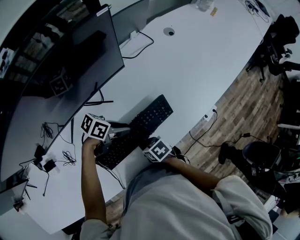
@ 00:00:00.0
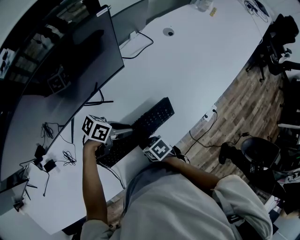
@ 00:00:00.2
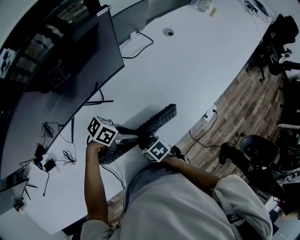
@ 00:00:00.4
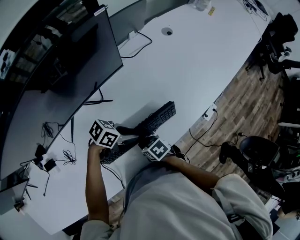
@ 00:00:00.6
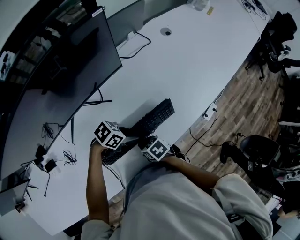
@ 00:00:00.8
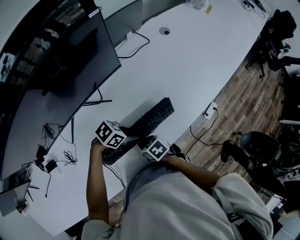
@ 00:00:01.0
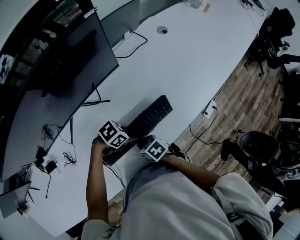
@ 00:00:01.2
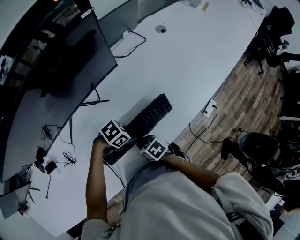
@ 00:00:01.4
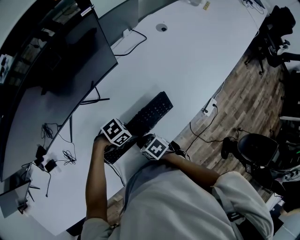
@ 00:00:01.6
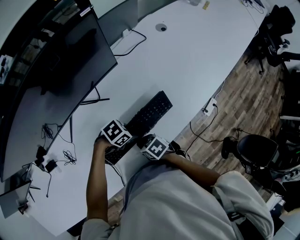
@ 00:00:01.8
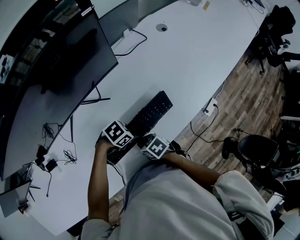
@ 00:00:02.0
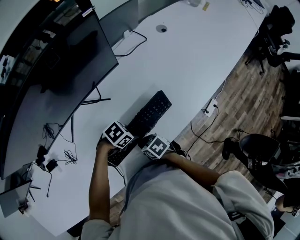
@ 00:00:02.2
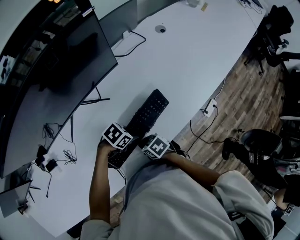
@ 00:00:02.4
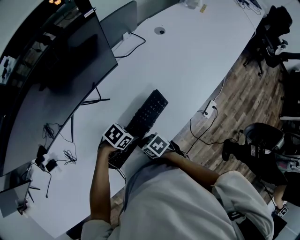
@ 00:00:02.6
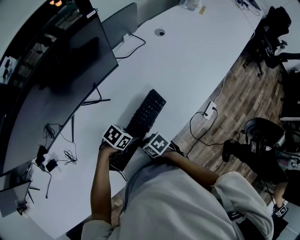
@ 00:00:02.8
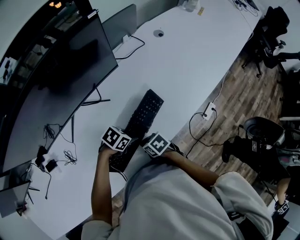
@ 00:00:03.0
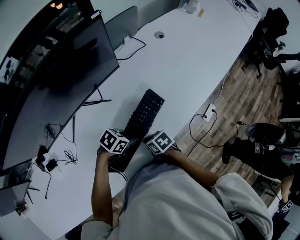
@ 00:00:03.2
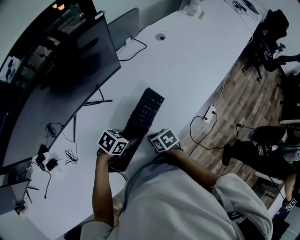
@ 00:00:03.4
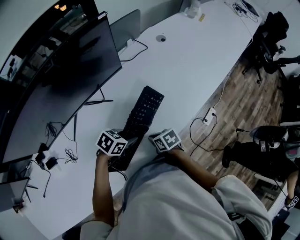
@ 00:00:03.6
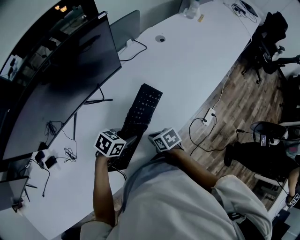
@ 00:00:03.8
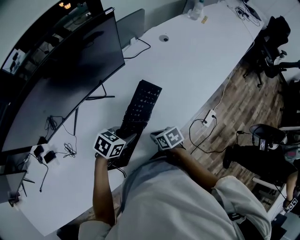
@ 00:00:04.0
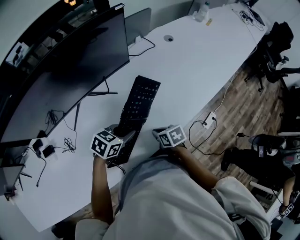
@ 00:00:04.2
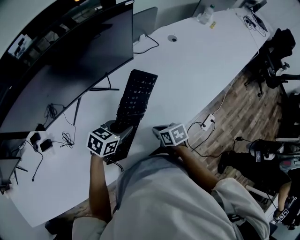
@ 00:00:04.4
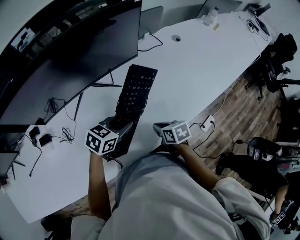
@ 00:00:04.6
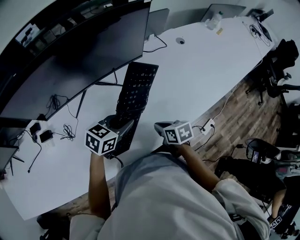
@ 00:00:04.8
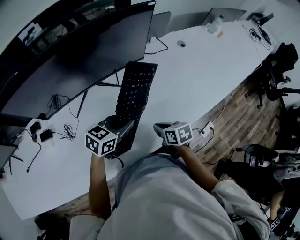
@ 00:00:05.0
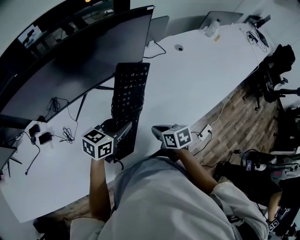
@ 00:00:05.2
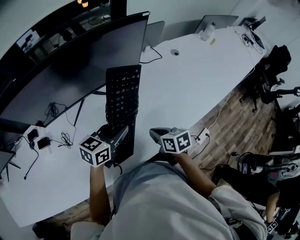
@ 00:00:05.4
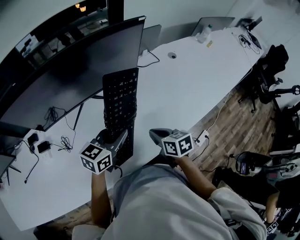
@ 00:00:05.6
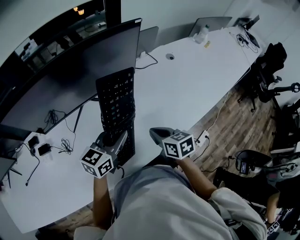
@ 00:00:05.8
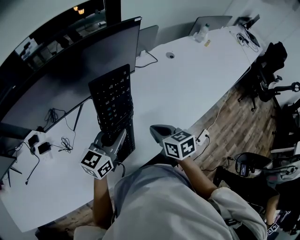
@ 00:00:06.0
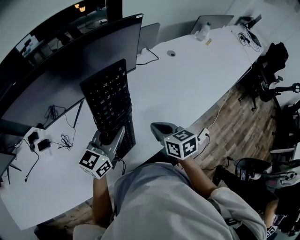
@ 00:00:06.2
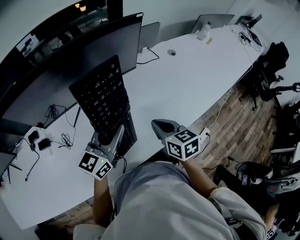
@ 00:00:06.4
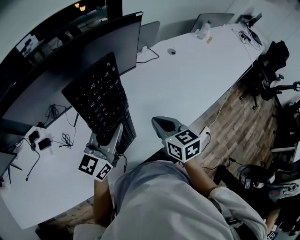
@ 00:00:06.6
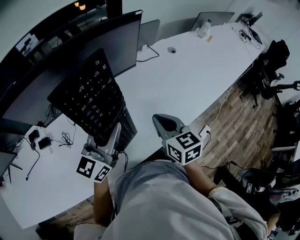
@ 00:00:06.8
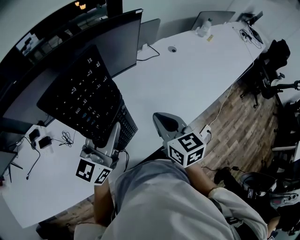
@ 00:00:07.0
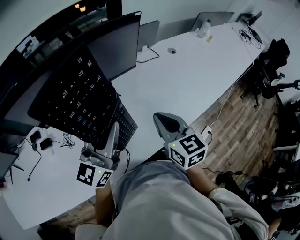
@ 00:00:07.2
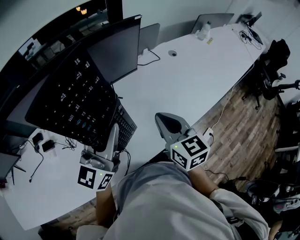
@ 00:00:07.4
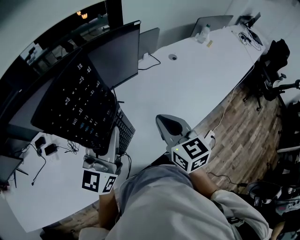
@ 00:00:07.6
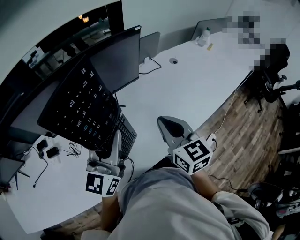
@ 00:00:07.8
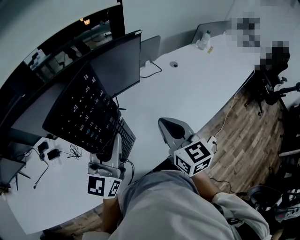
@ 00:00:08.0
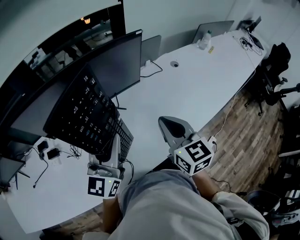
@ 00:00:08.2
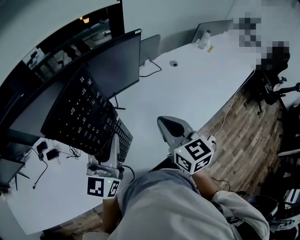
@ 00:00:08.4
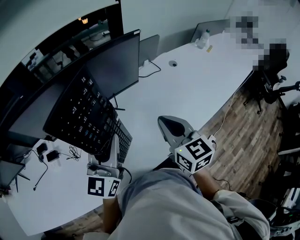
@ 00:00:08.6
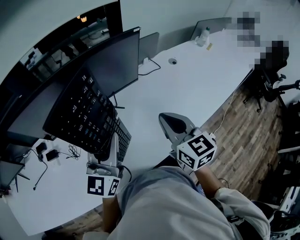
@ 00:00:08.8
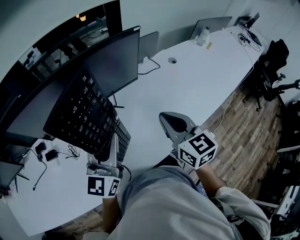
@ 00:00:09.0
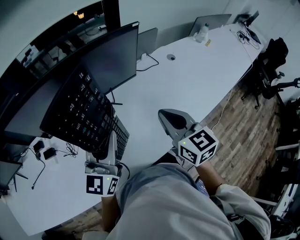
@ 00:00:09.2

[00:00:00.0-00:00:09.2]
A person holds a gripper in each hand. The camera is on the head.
00:00:00.0 to 00:00:01.6: The left gripper ends up roughly 10 cm from where it was, and changes its angle by roughly 30 degrees.
00:00:01.6 to 00:00:03.0: There are only small adjustments of the grippers.
00:00:03.0 to 00:00:04.6: The right gripper goes about 5 cm upward. The left gripper shifts some 10 cm upward, and swivels approximately 40 degrees.
00:00:04.6 to 00:00:06.2: Both grippers move upward, roughly 15 cm. The right gripper turns by some 20 degrees. Meanwhile the left gripper points its fingers some 30 degrees further upward.
00:00:06.2 to 00:00:07.6: Both grippers travel together upward, roughly 10 cm. The right gripper swivels roughly 20 degrees. The left gripper changes its angle by about 20 degrees.
00:00:07.6 to 00:00:09.2: The grippers make only small movements.

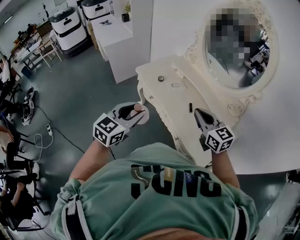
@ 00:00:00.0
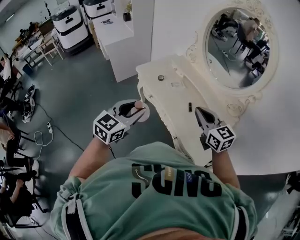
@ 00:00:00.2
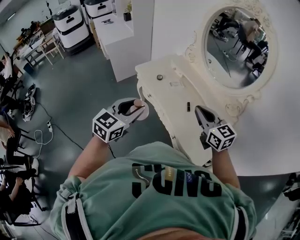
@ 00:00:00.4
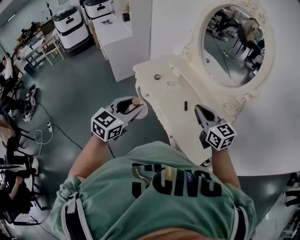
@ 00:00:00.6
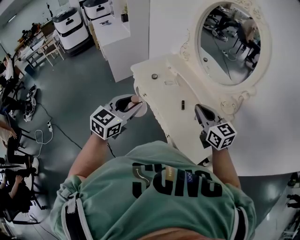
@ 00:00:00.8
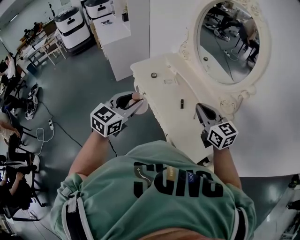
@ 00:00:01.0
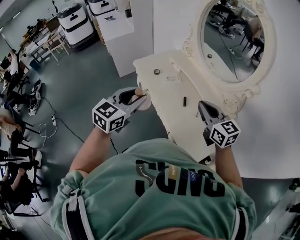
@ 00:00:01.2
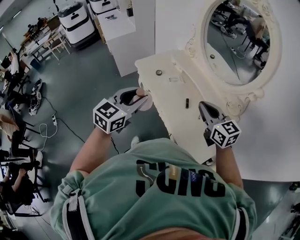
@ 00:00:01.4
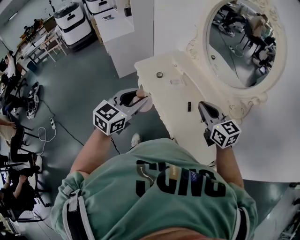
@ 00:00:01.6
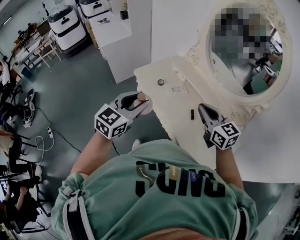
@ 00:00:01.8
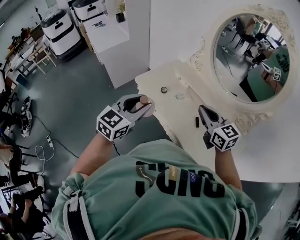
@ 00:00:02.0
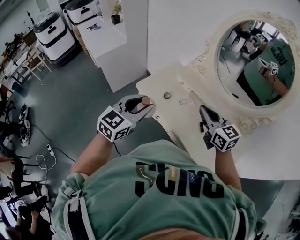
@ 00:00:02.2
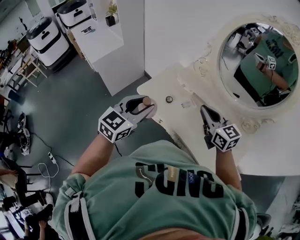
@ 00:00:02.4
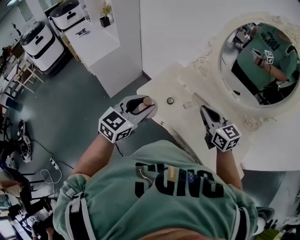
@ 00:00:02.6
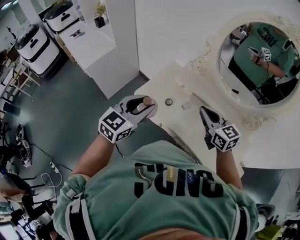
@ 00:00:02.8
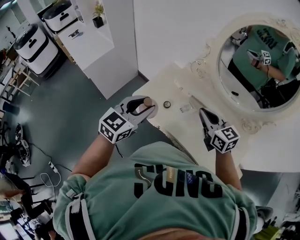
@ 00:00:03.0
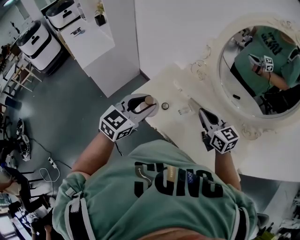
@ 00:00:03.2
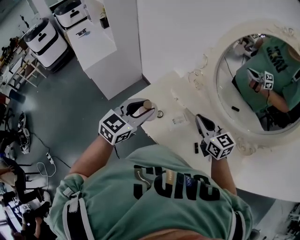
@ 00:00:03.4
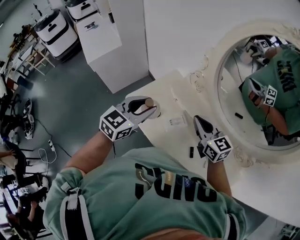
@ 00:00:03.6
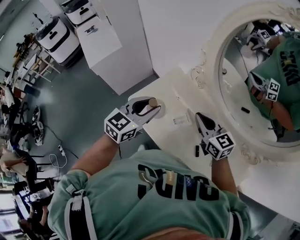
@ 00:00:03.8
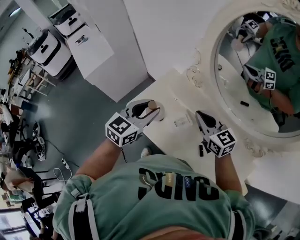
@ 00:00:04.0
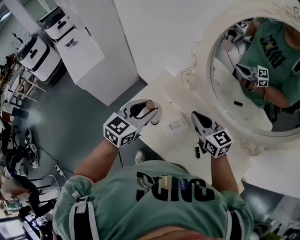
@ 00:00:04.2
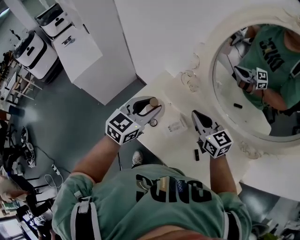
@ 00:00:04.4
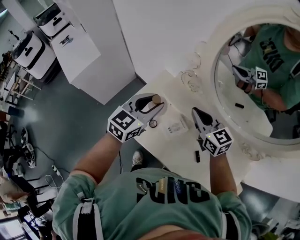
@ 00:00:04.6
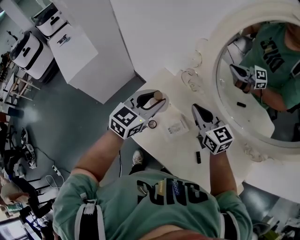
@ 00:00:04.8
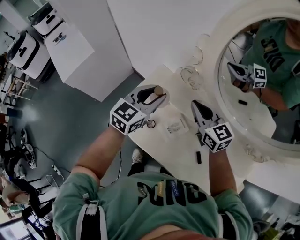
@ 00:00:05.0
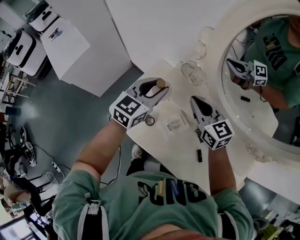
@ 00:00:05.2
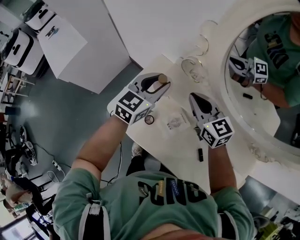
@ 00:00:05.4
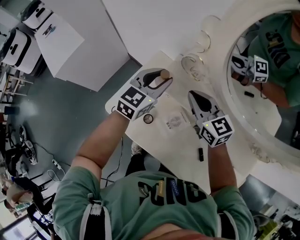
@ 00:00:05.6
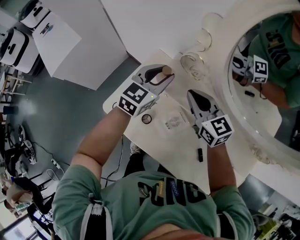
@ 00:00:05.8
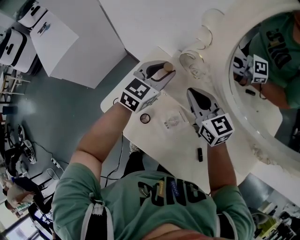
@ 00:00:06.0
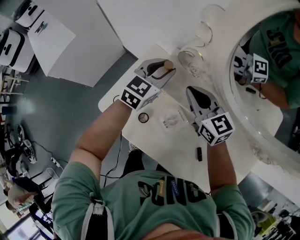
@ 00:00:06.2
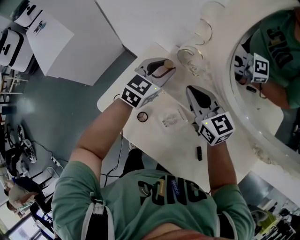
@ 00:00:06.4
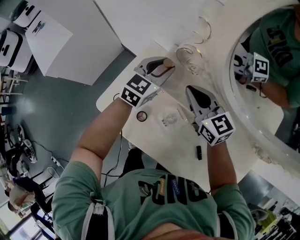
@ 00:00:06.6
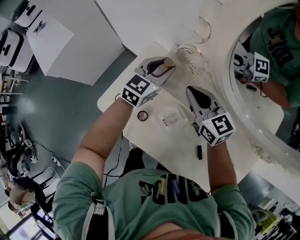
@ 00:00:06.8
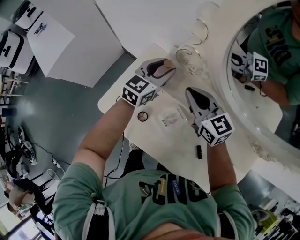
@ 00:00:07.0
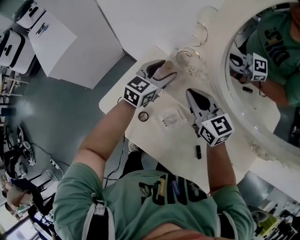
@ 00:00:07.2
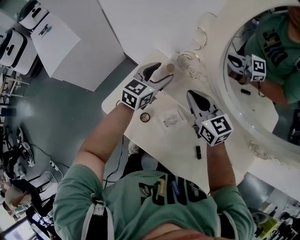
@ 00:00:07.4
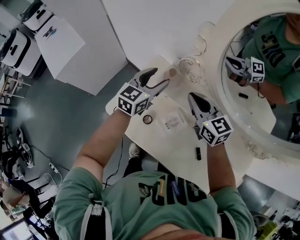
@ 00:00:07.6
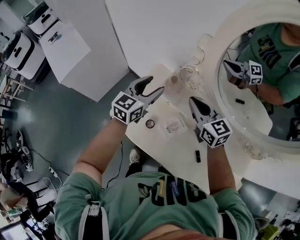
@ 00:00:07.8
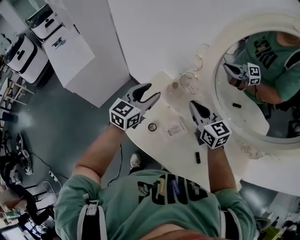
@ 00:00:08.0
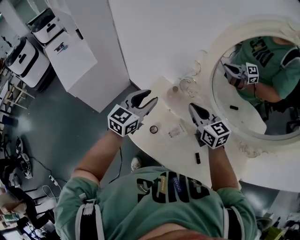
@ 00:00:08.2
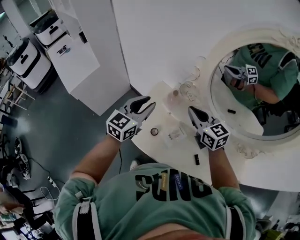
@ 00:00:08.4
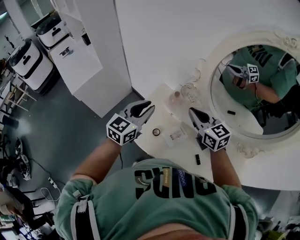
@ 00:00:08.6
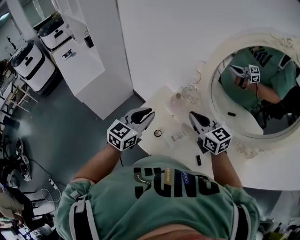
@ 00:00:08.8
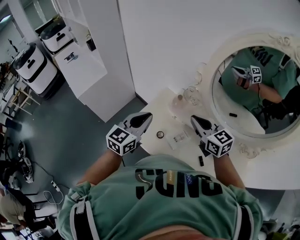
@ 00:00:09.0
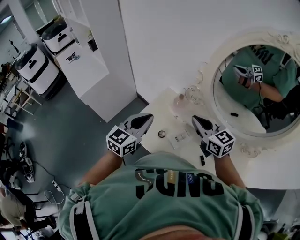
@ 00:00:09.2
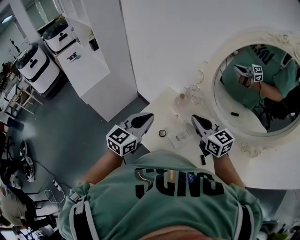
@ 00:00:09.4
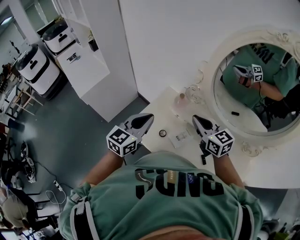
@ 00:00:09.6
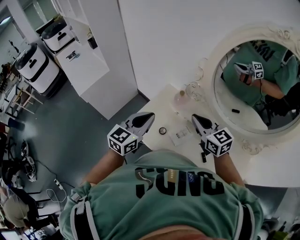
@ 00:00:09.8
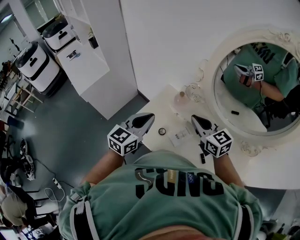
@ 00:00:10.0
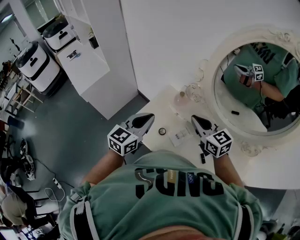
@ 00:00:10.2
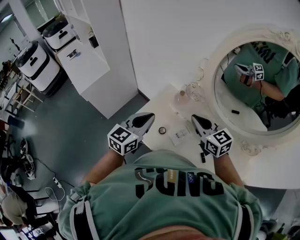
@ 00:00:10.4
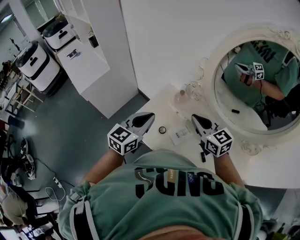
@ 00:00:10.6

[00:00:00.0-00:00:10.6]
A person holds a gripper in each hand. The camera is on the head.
00:00:00.0 to 00:00:01.6: The right gripper heads to the right and forward, covering some 10 cm. The left gripper shifts roughly 10 cm forward and to the right.
00:00:01.6 to 00:00:03.0: Both grippers travel together forward and to the left, about 30 cm. The left gripper rotates roughly 20 degrees.
00:00:03.0 to 00:00:04.6: The right gripper is displaced forward by roughly 20 cm. Meanwhile the left gripper heads forward and to the right, covering about 25 cm.
00:00:04.6 to 00:00:06.0: The right gripper travels downward and forward by approximately 15 cm. Meanwhile the left gripper travels forward and downward by approximately 20 cm.
00:00:06.0 to 00:00:07.6: The left gripper opens up.
00:00:07.6 to 00:00:09.0: The left gripper shifts some 25 cm backward, upward and to the left, and closes. The right gripper travels upward and backward by about 15 cm.
00:00:09.0 to 00:00:10.6: The grippers move only a little.

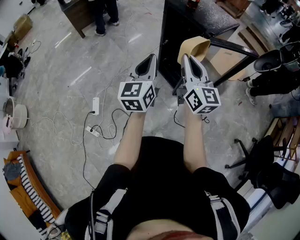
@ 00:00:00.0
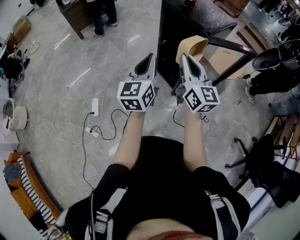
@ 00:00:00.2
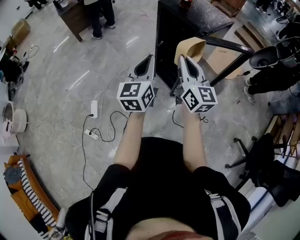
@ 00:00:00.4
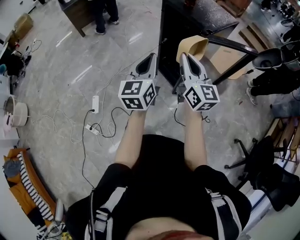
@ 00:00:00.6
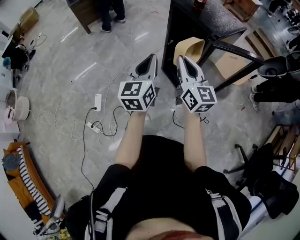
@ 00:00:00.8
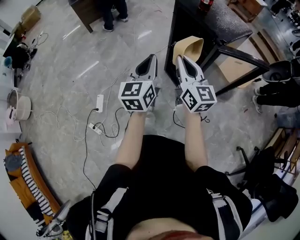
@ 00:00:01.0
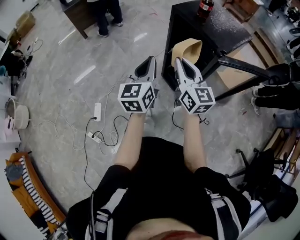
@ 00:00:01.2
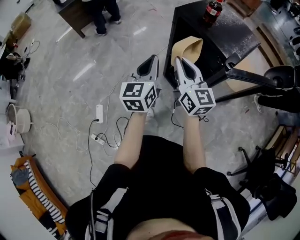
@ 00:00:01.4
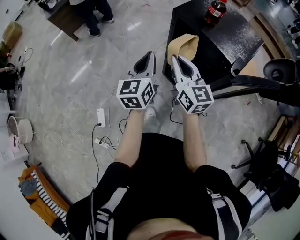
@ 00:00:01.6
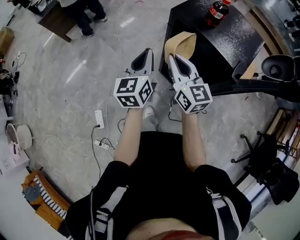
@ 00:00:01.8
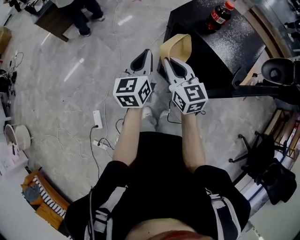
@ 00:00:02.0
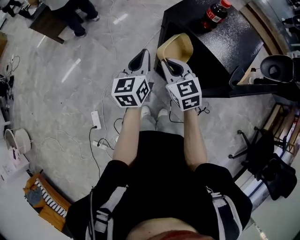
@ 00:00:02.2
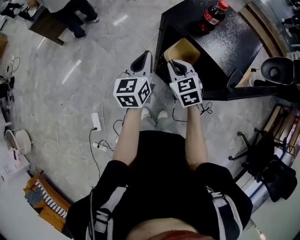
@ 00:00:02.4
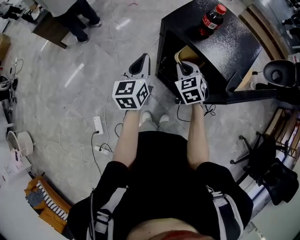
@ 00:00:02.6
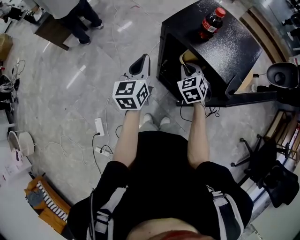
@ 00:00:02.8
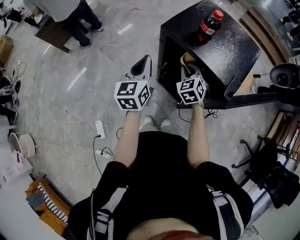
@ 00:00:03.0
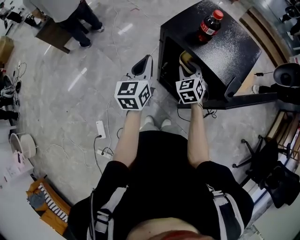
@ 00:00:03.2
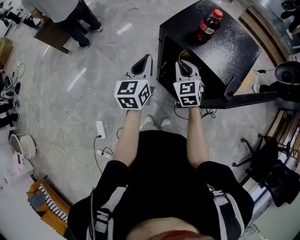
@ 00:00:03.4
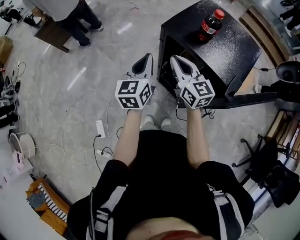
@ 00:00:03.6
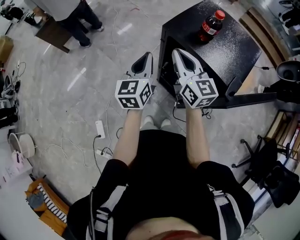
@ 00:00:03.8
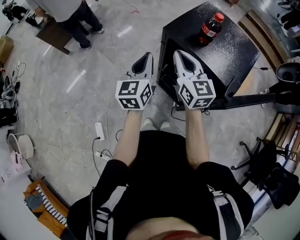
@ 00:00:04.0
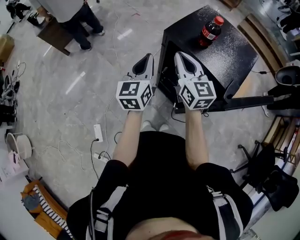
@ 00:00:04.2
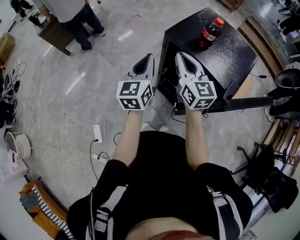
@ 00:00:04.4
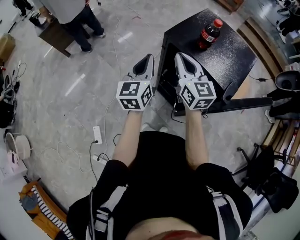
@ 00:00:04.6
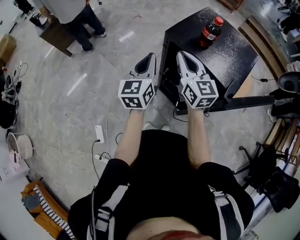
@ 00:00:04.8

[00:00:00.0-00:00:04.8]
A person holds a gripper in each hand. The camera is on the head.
00:00:00.0 to 00:00:01.6: Both grippers move forward, roughly 25 cm.
00:00:01.6 to 00:00:03.2: The right gripper is displaced downward, forward and to the right by about 20 cm, points its fingers about 30 degrees further downward, and opens. The left gripper shifts some 10 cm forward.
00:00:03.2 to 00:00:04.8: The right gripper moves upward, approximately 15 cm, angles its fingers upward, by approximately 30 degrees, and closes.
